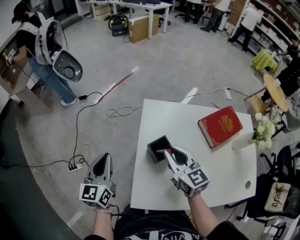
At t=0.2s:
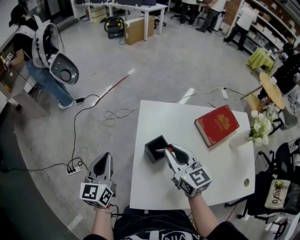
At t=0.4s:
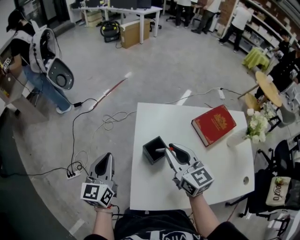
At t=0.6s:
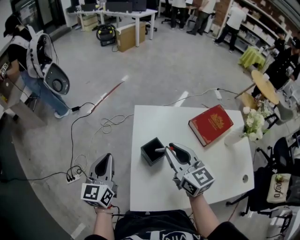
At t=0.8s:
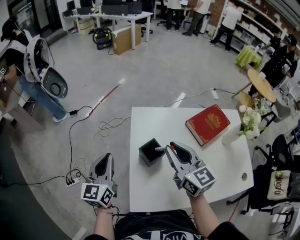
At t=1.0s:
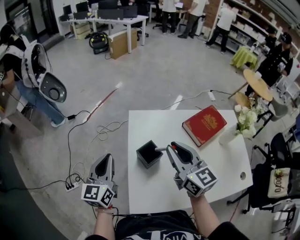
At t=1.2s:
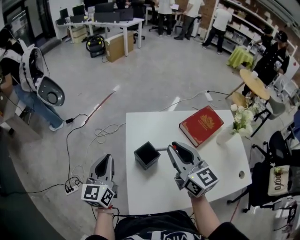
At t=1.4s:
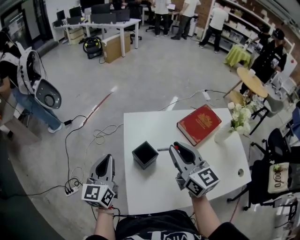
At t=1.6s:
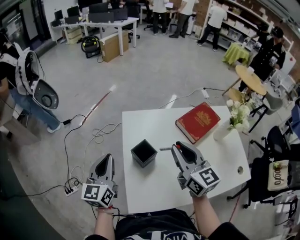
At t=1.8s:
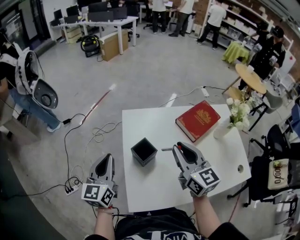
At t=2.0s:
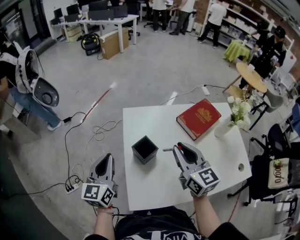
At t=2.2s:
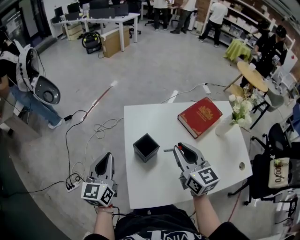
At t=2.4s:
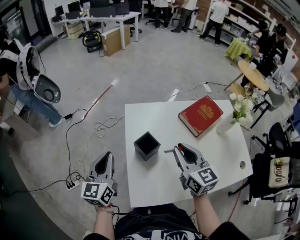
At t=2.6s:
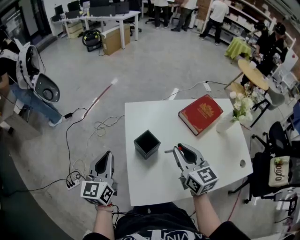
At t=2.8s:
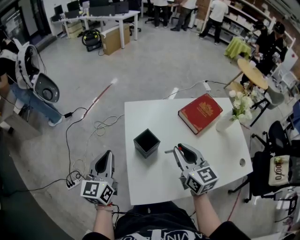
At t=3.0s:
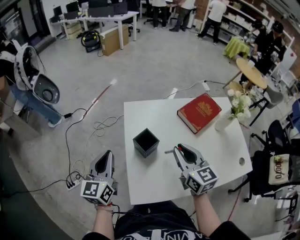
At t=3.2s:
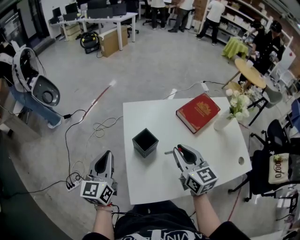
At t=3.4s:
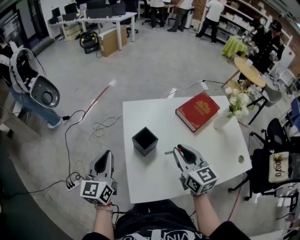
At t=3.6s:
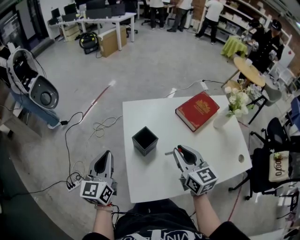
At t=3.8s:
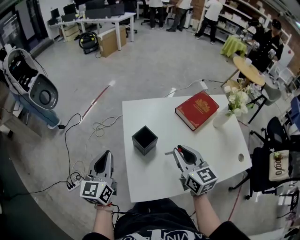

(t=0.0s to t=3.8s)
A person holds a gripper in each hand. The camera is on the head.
t=0.0s - t=1.2s: The right gripper goes about 10 cm upward and to the right; the left gripper travels to the right by some 5 cm.
t=1.2s - t=2.6s: The right gripper heads downward, covering some 5 cm.
t=2.6s - t=3.8s: The grippers move only a little.

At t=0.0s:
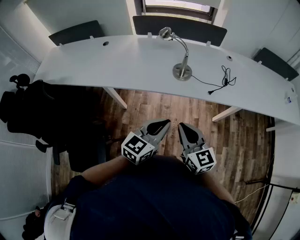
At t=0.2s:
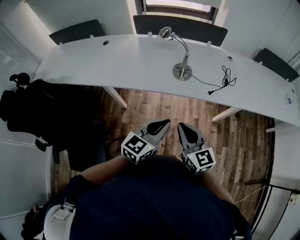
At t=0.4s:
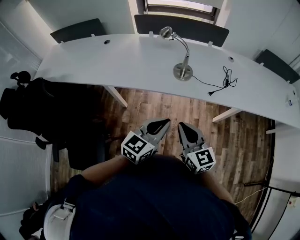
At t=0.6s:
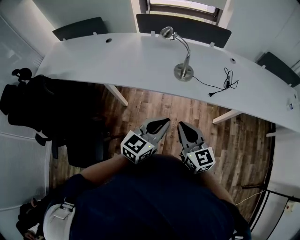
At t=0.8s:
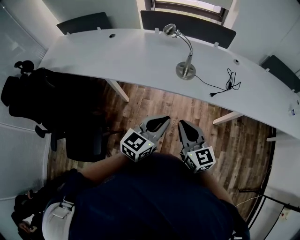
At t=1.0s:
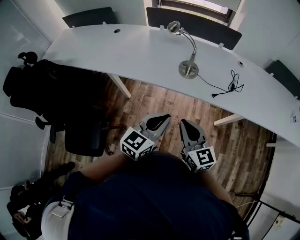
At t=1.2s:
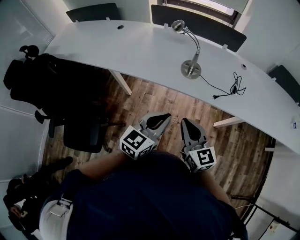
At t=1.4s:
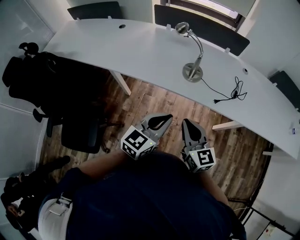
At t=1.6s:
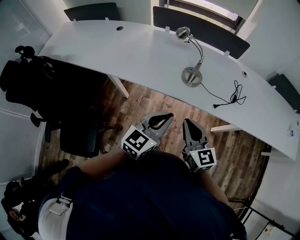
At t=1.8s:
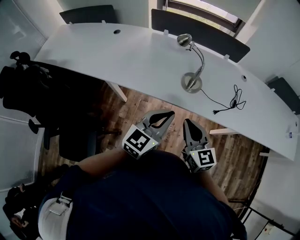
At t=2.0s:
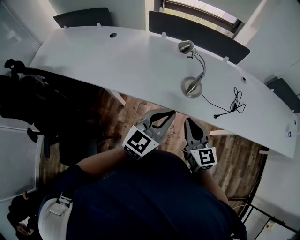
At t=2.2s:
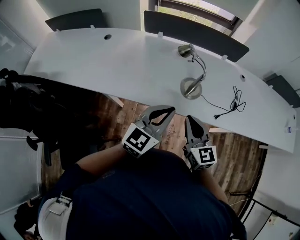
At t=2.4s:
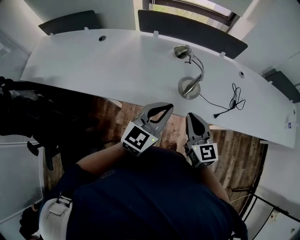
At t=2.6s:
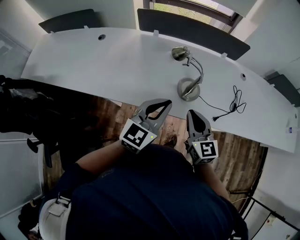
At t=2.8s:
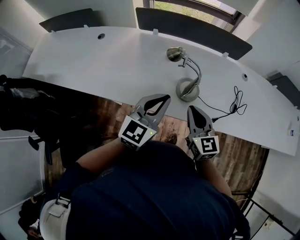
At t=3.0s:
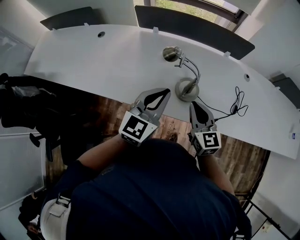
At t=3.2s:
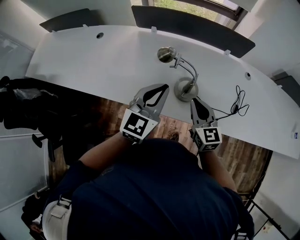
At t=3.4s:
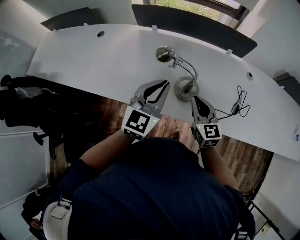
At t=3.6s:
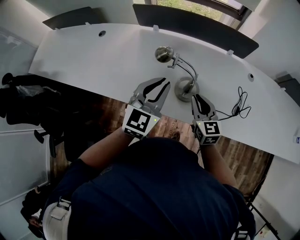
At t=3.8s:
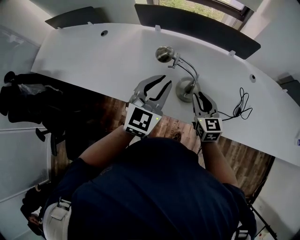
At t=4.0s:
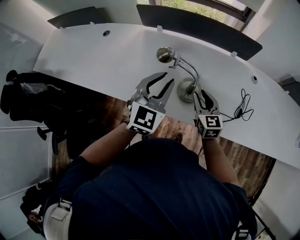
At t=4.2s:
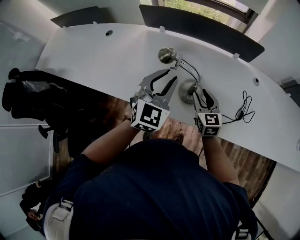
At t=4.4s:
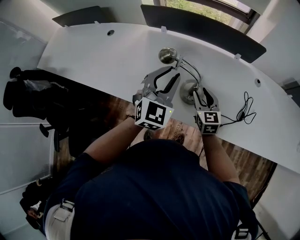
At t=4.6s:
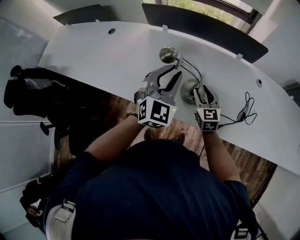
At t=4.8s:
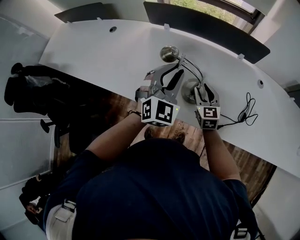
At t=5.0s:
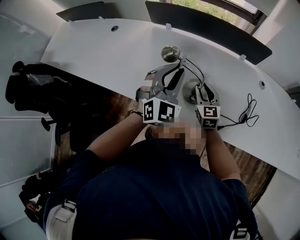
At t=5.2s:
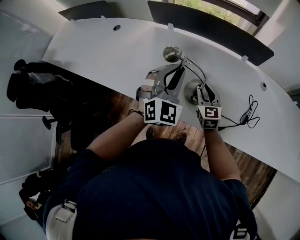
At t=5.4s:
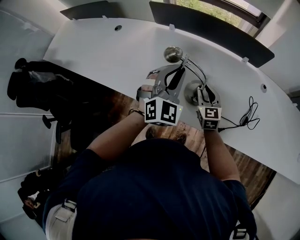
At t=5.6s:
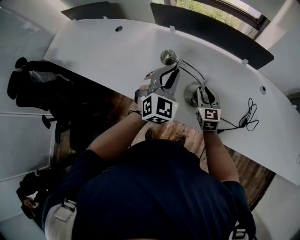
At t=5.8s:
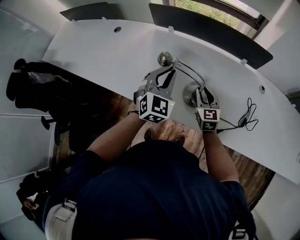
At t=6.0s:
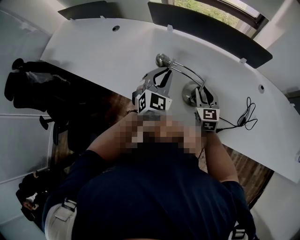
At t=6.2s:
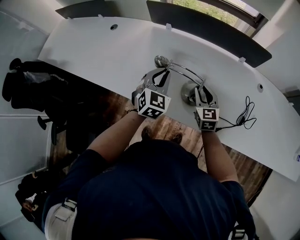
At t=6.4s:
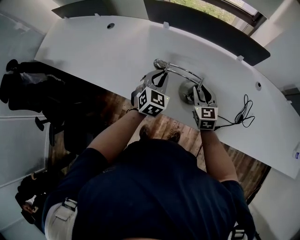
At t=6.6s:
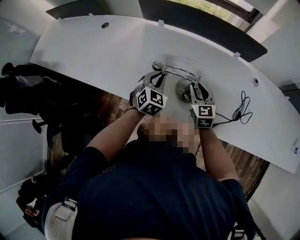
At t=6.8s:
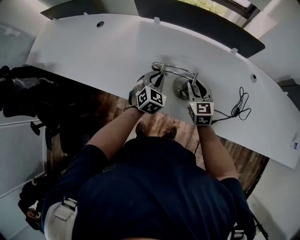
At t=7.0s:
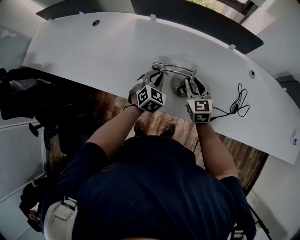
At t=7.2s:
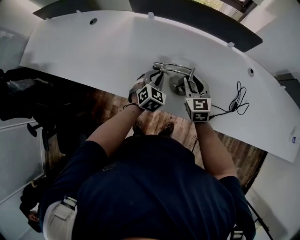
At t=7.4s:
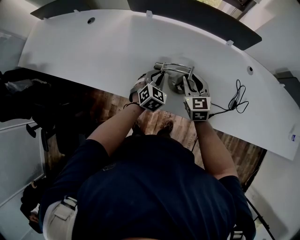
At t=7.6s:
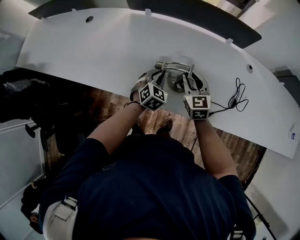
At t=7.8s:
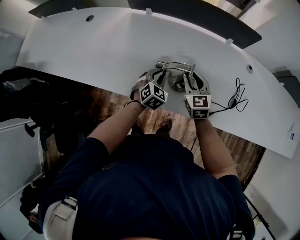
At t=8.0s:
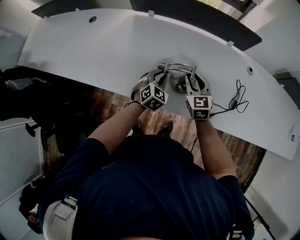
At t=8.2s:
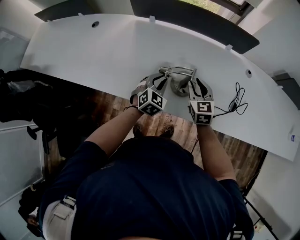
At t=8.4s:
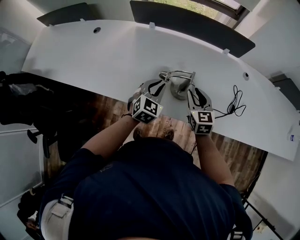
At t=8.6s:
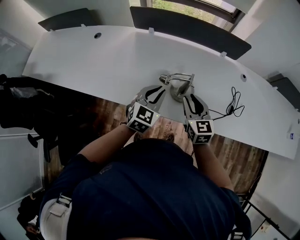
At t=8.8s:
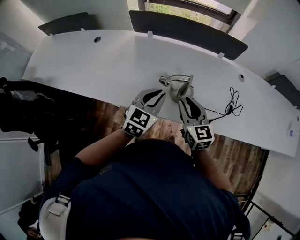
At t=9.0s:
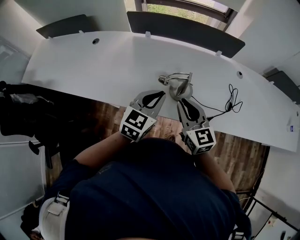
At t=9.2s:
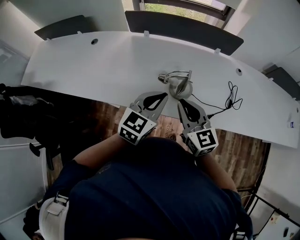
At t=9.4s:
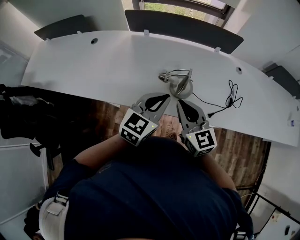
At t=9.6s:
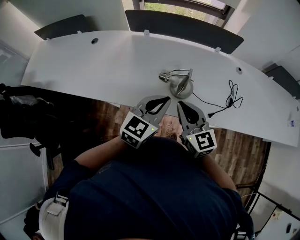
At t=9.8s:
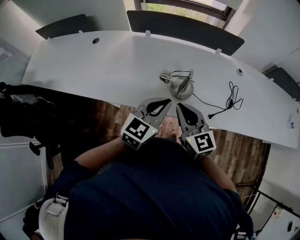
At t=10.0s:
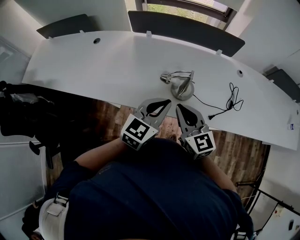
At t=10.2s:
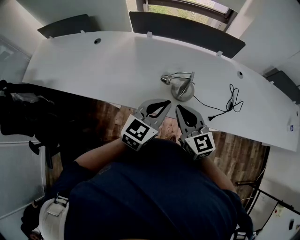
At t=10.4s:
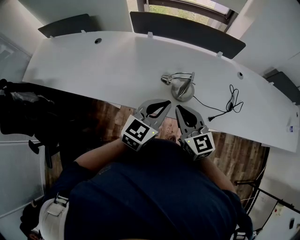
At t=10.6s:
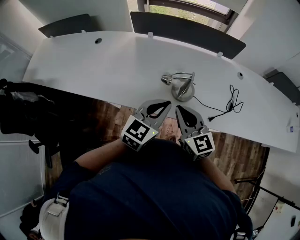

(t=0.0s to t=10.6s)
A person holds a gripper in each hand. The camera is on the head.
t=0.0s - t=1.6s: Both grippers travel together forward, about 10 cm.
t=1.6s - t=3.0s: The grippers both shift forward by about 25 cm.
t=3.0s - t=4.6s: The left gripper travels forward by approximately 10 cm, changes its angle by about 30 degrees, and opens its fingers, while the right gripper shifts some 15 cm forward and downward, and opens up.
t=4.6s - t=6.0s: The left gripper is displaced downward by roughly 5 cm.
t=6.0s - t=7.6s: The left gripper goes about 15 cm downward.
t=7.6s - t=9.0s: The left gripper goes roughly 25 cm upward and backward, and rotates about 30 degrees, while the right gripper is displaced backward and upward by approximately 20 cm.
t=9.0s - t=10.6s: The grippers move only a little.

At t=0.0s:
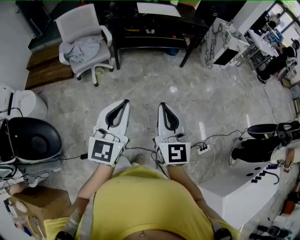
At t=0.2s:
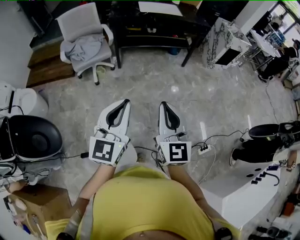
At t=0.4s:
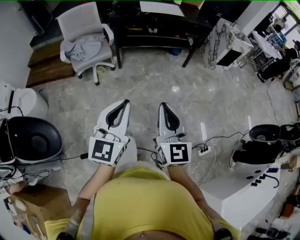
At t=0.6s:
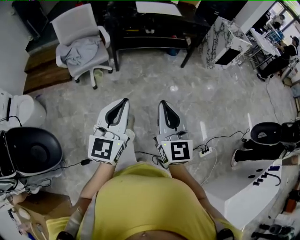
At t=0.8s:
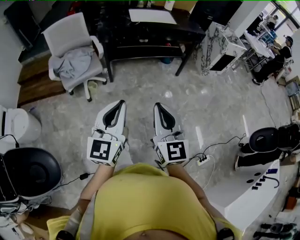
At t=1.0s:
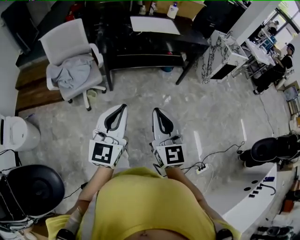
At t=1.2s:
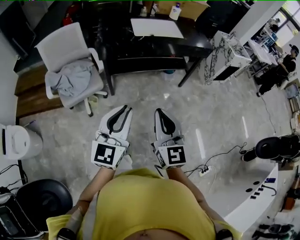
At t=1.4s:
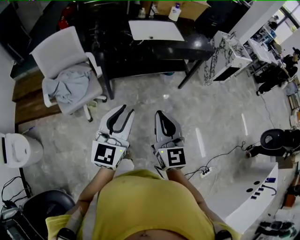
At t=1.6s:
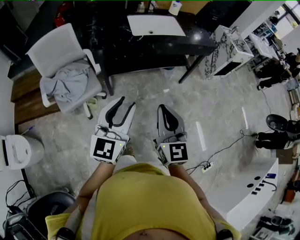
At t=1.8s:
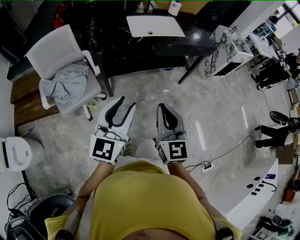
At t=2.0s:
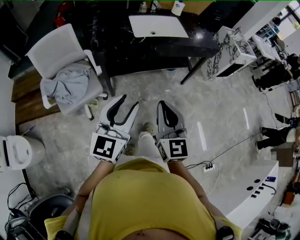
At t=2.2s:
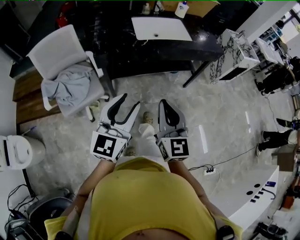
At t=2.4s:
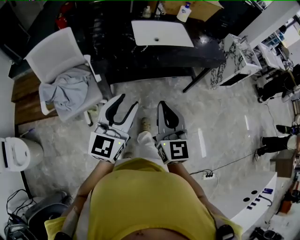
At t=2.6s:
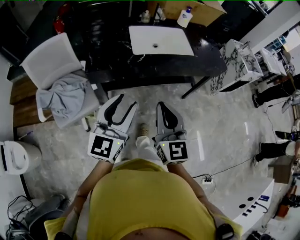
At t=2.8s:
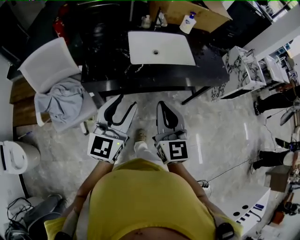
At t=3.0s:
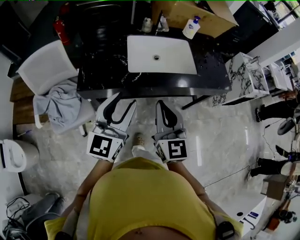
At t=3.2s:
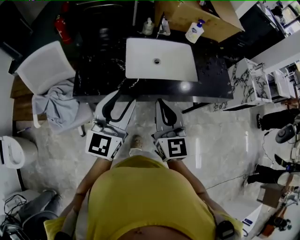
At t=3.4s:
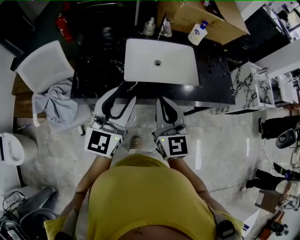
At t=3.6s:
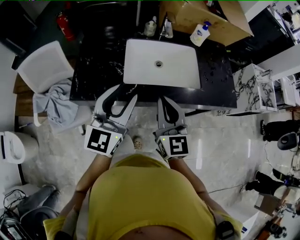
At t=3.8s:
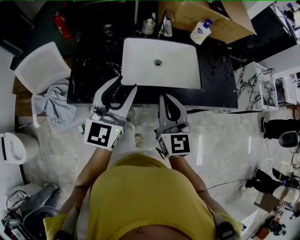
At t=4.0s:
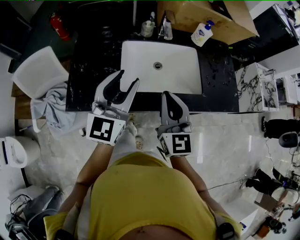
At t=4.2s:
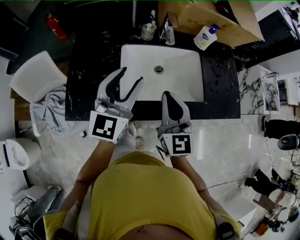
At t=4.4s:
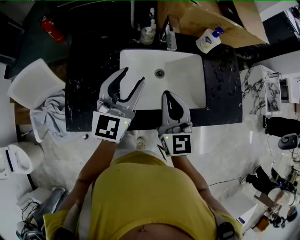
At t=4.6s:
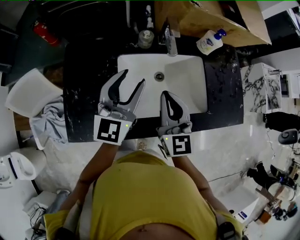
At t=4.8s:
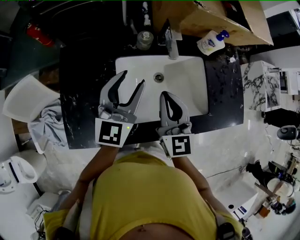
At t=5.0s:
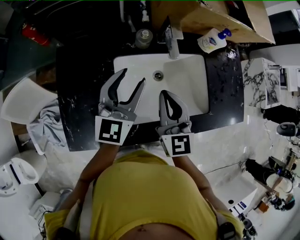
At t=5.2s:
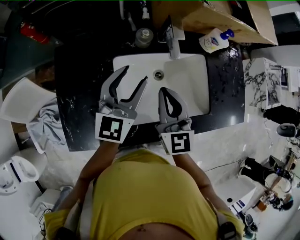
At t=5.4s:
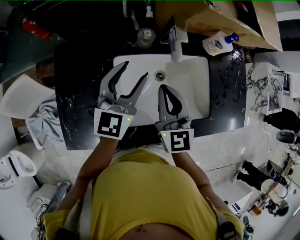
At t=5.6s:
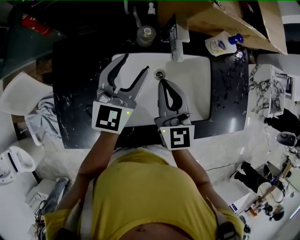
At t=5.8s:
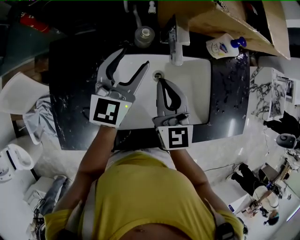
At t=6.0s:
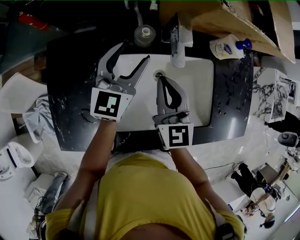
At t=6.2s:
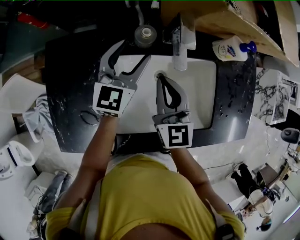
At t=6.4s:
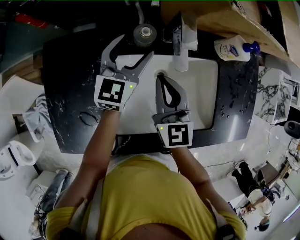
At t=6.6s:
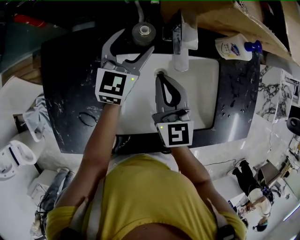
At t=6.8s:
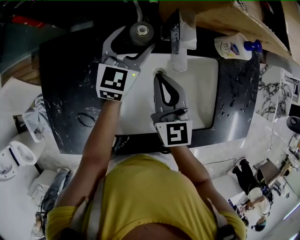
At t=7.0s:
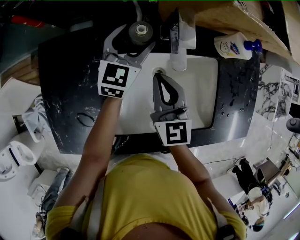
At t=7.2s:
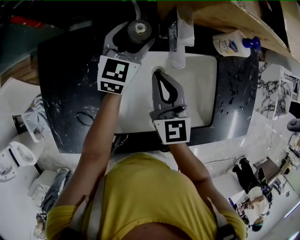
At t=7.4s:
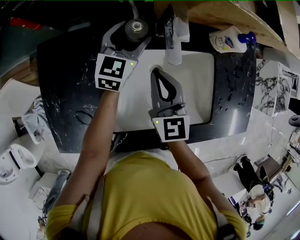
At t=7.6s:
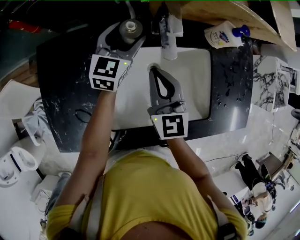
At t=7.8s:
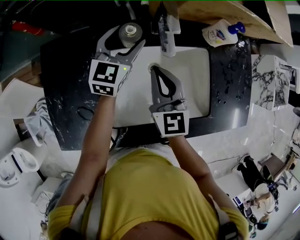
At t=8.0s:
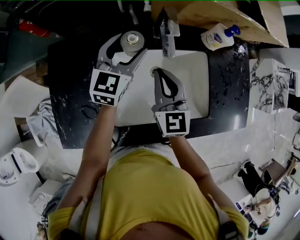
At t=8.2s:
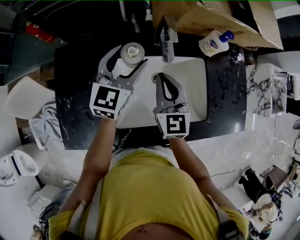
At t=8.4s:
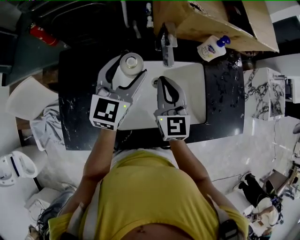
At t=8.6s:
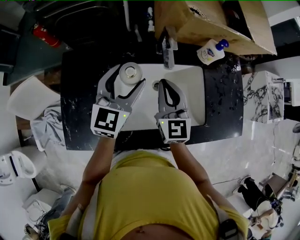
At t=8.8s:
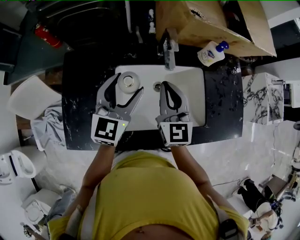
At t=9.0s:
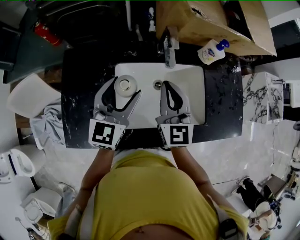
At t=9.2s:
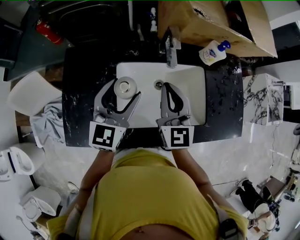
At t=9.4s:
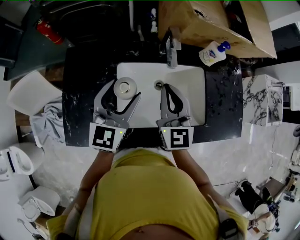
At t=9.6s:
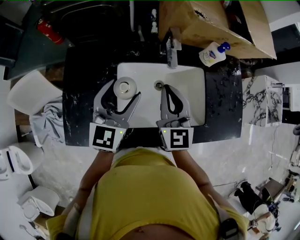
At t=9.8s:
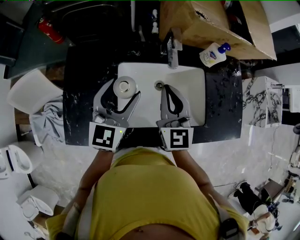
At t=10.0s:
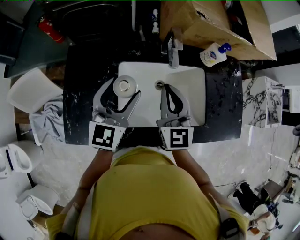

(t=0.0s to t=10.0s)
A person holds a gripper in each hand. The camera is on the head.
t=0.0s - t=1.4s: The two grippers travel together, forward, approximately 40 cm.
t=1.4s - t=2.8s: Both grippers travel together forward, roughly 35 cm.
t=2.8s - t=4.2s: The grippers both shift forward by approximately 35 cm.
t=4.2s - t=5.8s: The left gripper is displaced forward and downward by about 25 cm. Meanwhile the right gripper shifts some 20 cm forward.
t=5.8s - t=7.2s: The right gripper moves downward, approximately 5 cm. The left gripper heads forward and downward, covering approximately 15 cm.
t=7.2s - t=8.6s: The left gripper moves backward and upward, approximately 20 cm; the right gripper travels upward by roughly 5 cm.
t=8.6s - t=10.0s: The right gripper ends up some 5 cm from where it was. The left gripper is displaced backward by approximately 5 cm.
